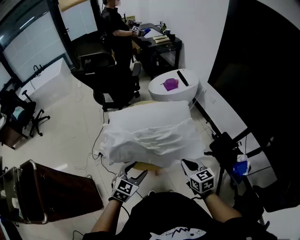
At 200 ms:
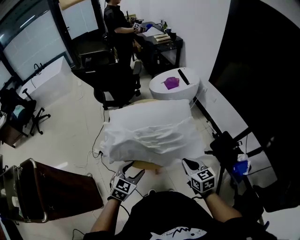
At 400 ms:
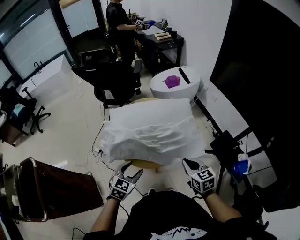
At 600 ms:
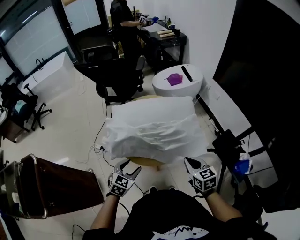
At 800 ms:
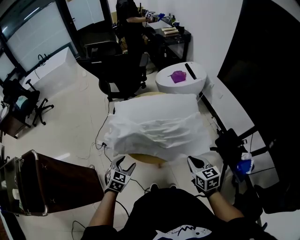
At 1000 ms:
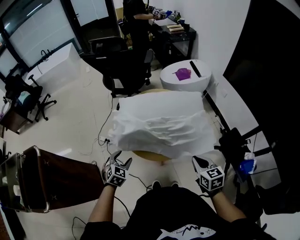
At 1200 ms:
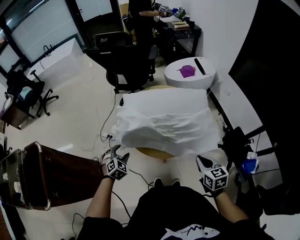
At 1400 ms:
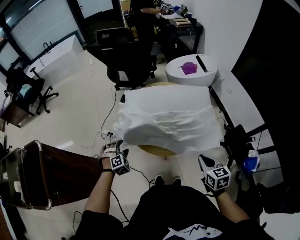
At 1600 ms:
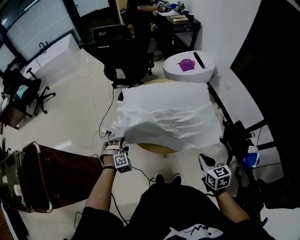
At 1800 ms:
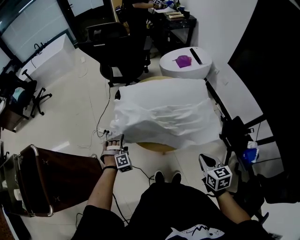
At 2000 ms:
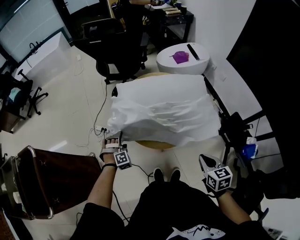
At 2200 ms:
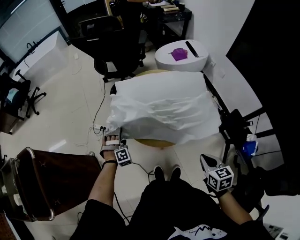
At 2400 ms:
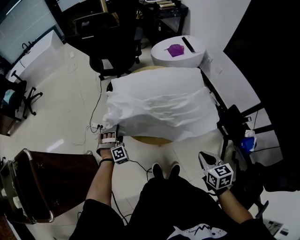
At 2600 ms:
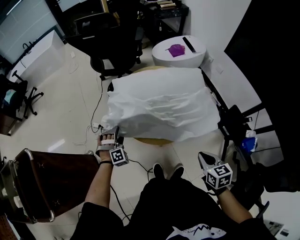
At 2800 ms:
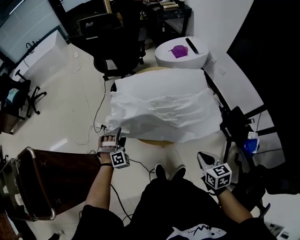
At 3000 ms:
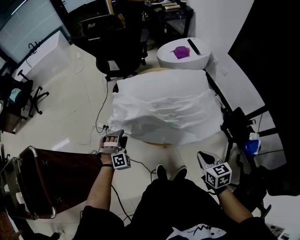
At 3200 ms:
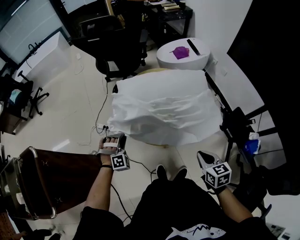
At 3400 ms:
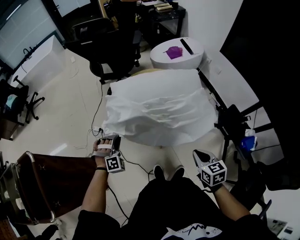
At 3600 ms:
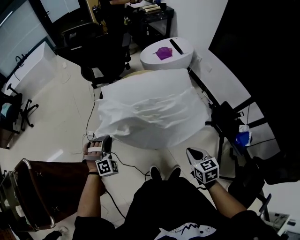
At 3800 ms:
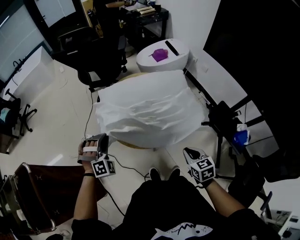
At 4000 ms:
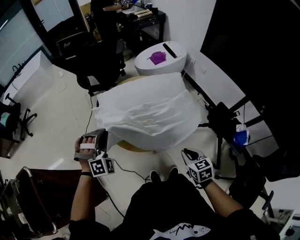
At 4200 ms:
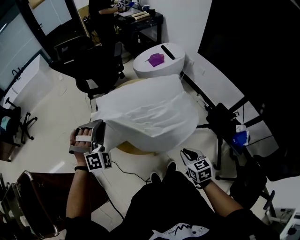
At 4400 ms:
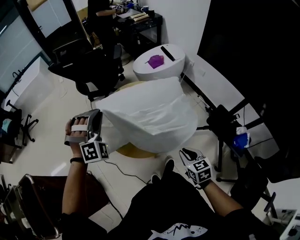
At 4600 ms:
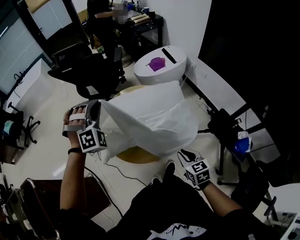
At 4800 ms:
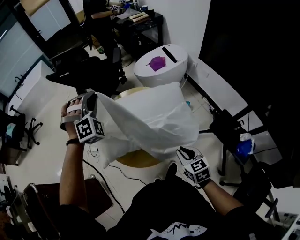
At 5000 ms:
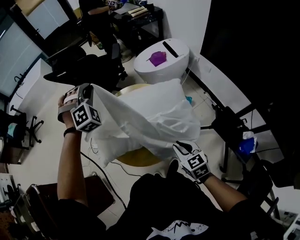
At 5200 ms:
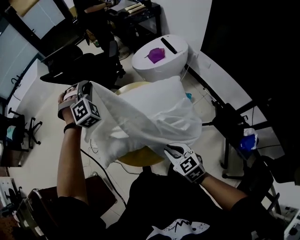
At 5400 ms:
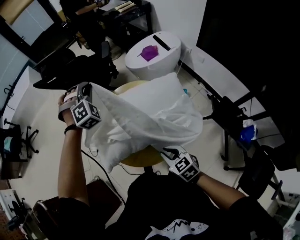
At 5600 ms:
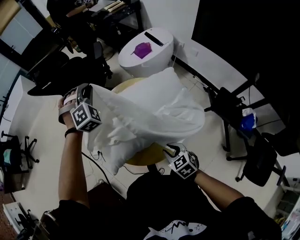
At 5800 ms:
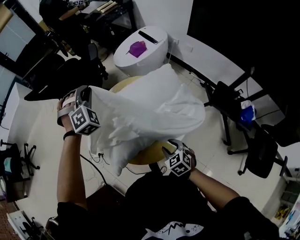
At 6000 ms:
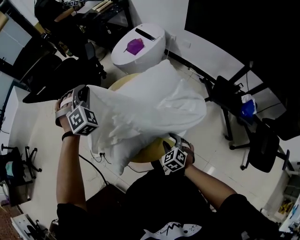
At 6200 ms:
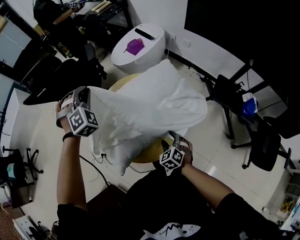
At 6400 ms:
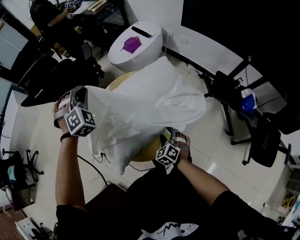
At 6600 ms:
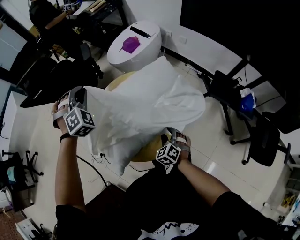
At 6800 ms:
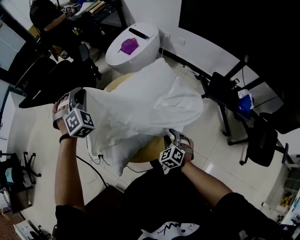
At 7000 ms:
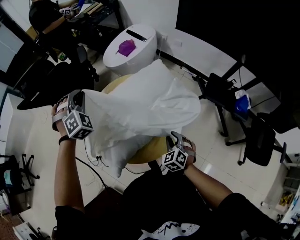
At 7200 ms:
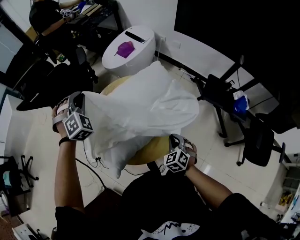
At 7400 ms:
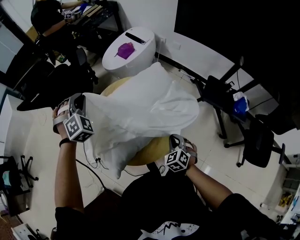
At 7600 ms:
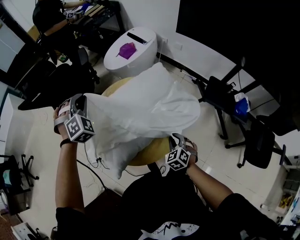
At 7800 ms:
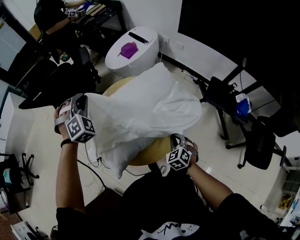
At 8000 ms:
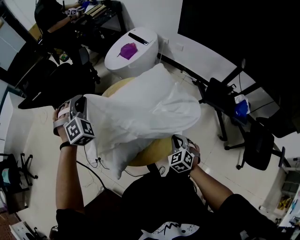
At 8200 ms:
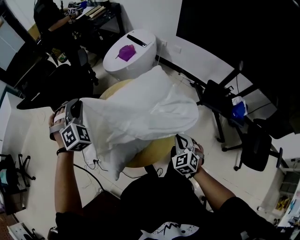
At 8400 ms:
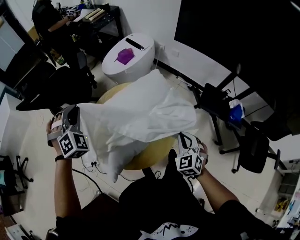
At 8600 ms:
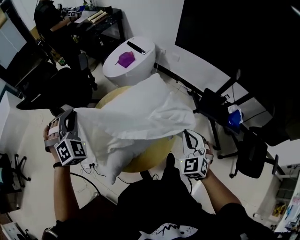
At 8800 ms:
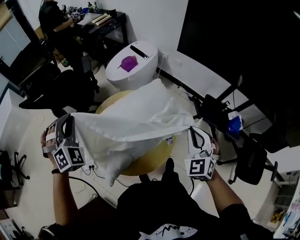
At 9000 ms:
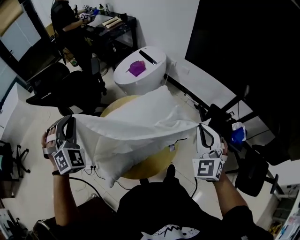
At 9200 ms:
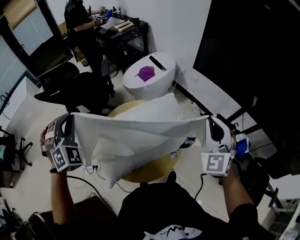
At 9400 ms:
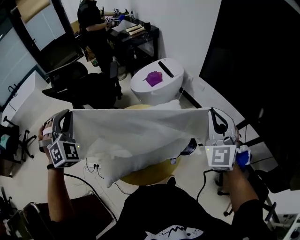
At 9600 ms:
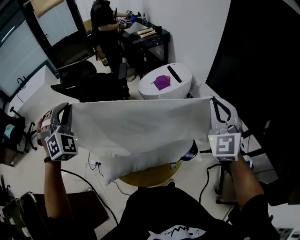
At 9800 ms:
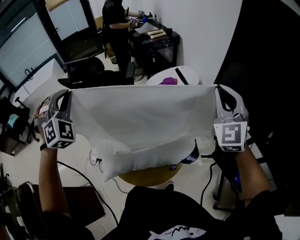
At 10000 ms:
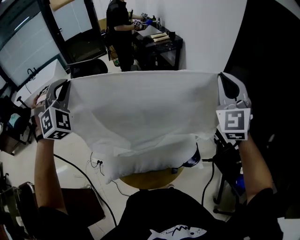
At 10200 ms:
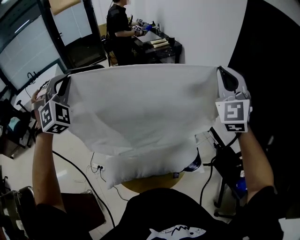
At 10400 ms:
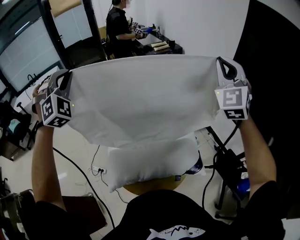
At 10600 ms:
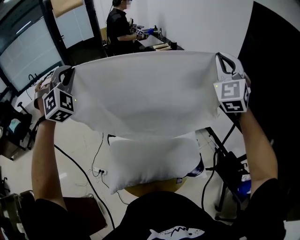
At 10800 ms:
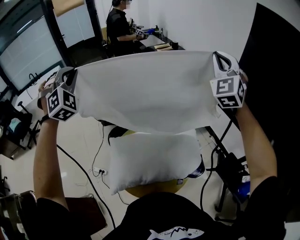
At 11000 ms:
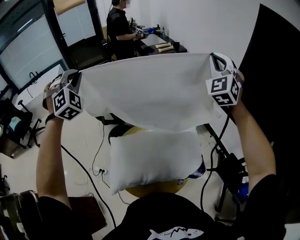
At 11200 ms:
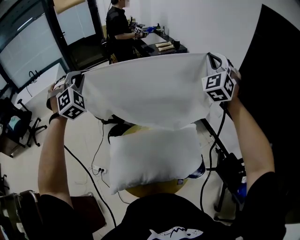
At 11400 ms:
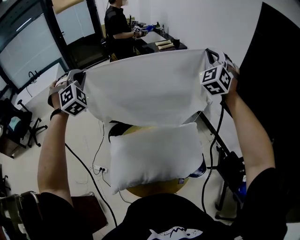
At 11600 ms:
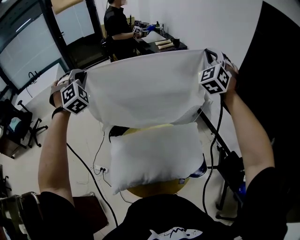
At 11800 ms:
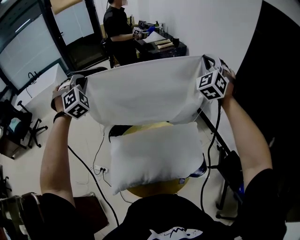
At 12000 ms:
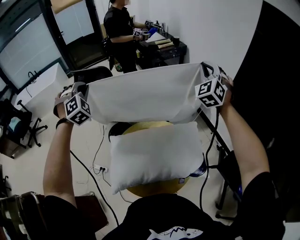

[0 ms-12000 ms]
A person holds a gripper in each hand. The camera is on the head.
3000 ms to 4400 ms: The right gripper moves some 5 cm.
4400 ms to 6000 ms: The right gripper moves about 20 cm, swivels about 30 degrees, and opens.
6000 ms to 7600 ms: The right gripper changes place by roughly 5 cm, and closes.
7600 ms to 9000 ms: The right gripper moves upward, about 30 cm, and tilts its fingers about 40 degrees upward.
9000 ms to 10400 ms: The right gripper moves upward, roughly 30 cm, and turns by approximately 30 degrees.
10400 ms to 12000 ms: The right gripper ends up approximately 15 cm from where it was.

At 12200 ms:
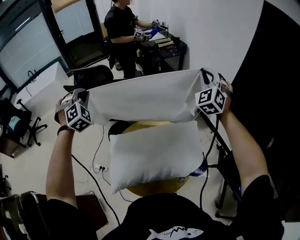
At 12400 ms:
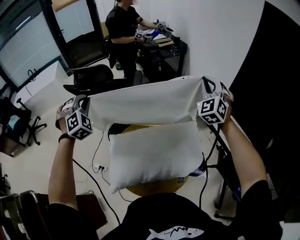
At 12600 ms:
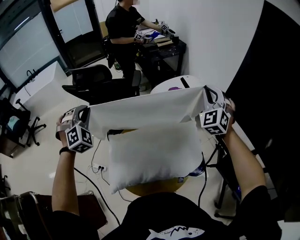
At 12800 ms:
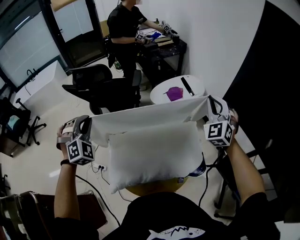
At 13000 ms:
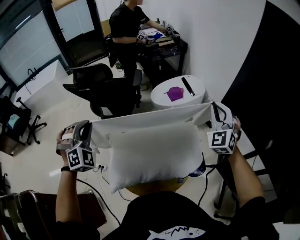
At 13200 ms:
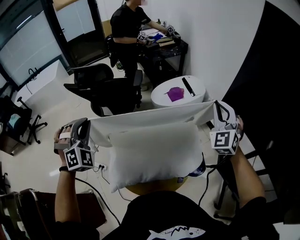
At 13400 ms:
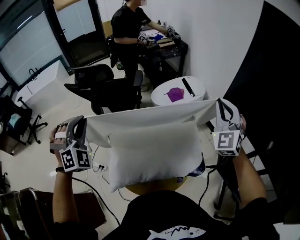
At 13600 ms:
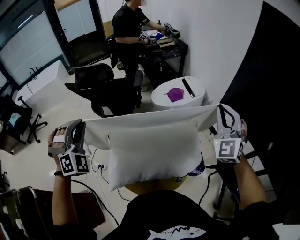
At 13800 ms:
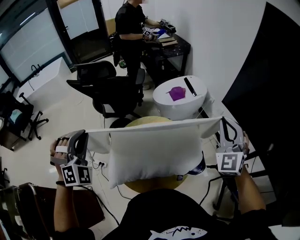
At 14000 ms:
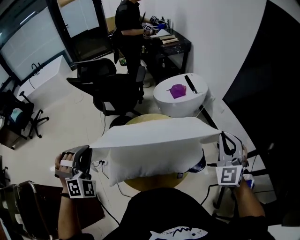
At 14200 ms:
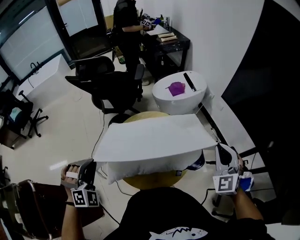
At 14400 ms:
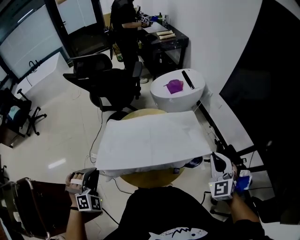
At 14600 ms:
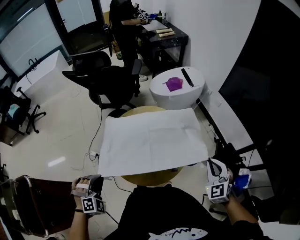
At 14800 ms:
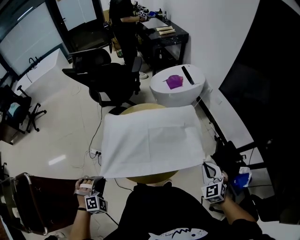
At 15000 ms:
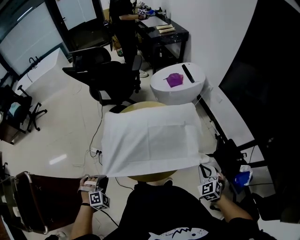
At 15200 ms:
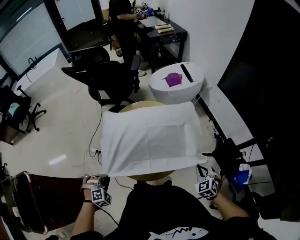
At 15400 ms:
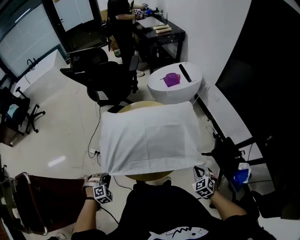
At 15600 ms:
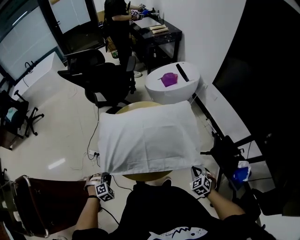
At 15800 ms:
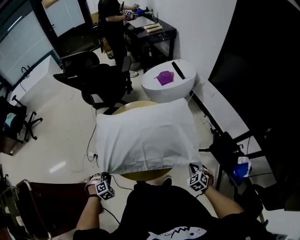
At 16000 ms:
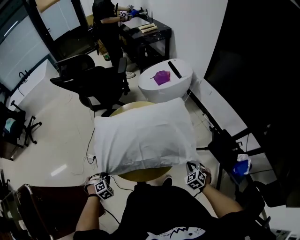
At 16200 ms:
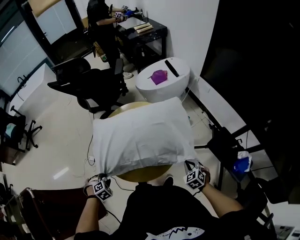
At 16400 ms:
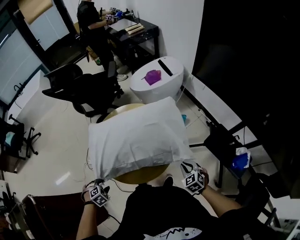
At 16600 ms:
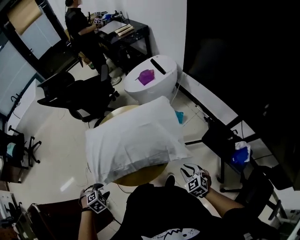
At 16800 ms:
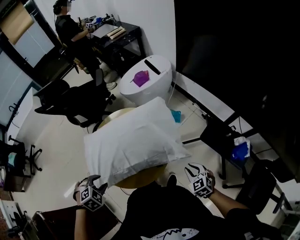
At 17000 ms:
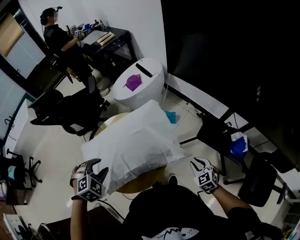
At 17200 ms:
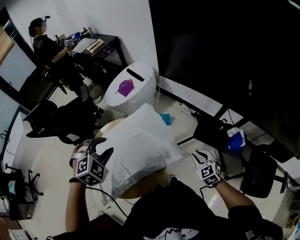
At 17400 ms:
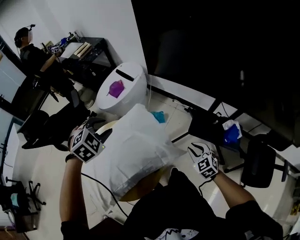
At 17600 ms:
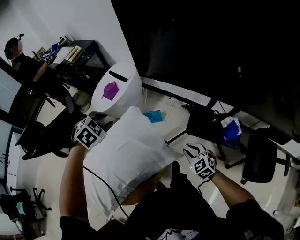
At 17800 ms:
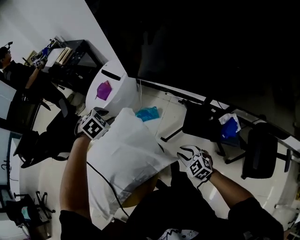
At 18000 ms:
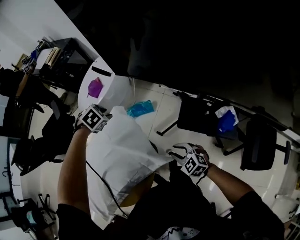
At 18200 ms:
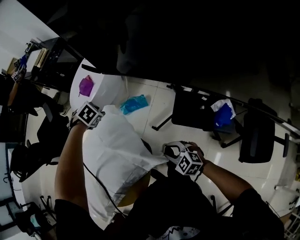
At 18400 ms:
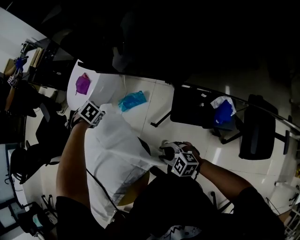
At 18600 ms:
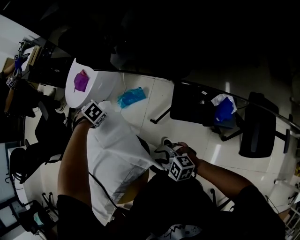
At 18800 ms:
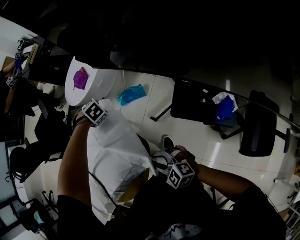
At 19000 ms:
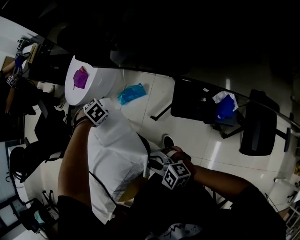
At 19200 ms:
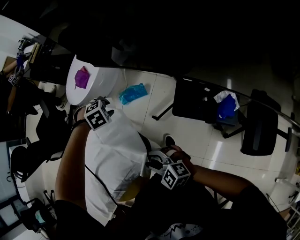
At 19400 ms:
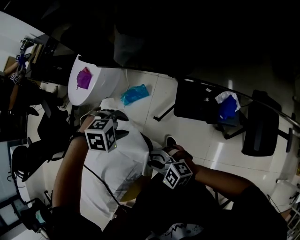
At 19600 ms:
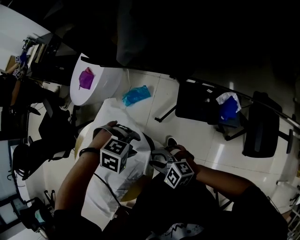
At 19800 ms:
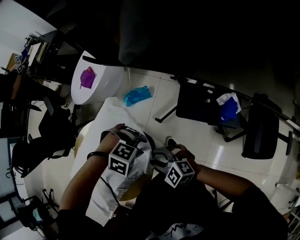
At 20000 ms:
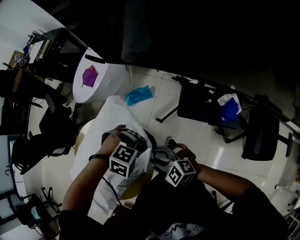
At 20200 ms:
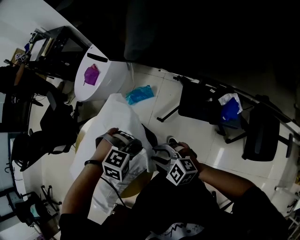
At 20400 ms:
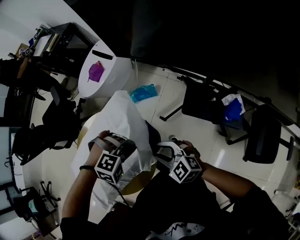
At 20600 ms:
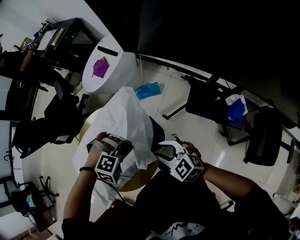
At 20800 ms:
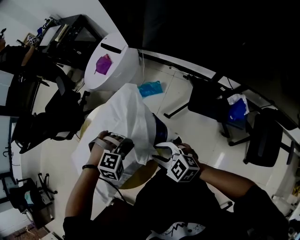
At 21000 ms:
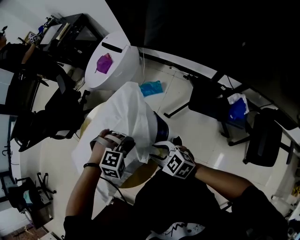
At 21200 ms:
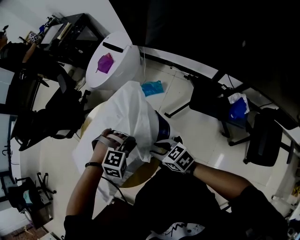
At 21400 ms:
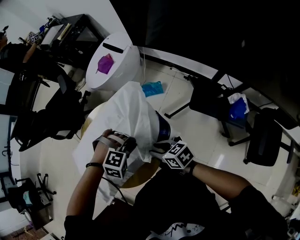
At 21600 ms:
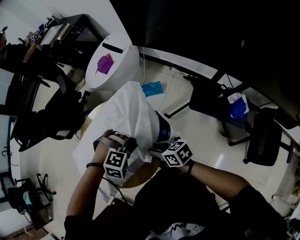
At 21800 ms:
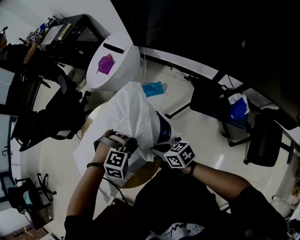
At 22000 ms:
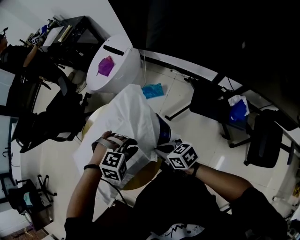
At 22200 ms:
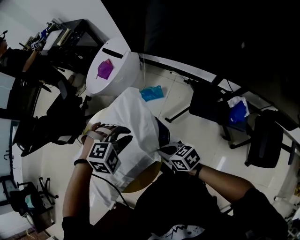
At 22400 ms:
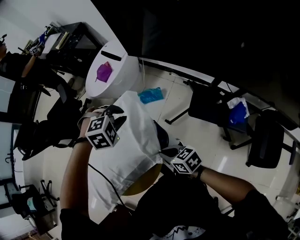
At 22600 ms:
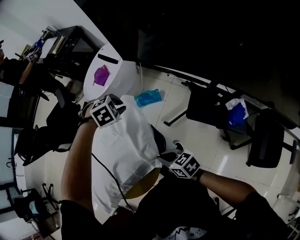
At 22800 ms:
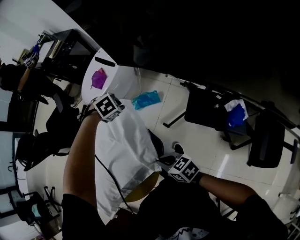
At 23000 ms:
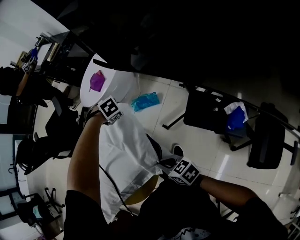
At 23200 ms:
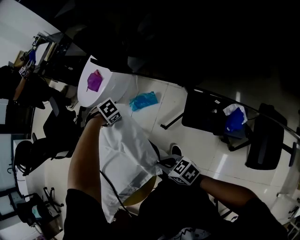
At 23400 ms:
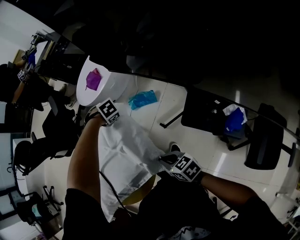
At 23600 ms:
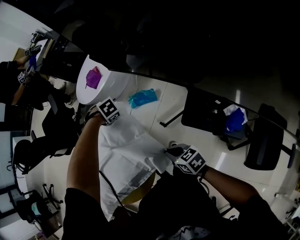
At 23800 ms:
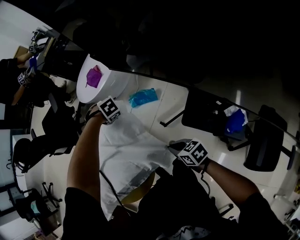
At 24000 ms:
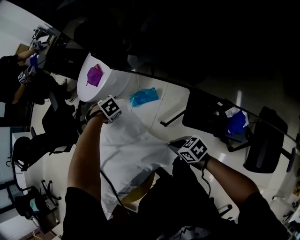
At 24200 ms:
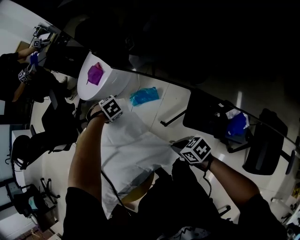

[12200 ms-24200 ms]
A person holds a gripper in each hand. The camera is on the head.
12200 ms to 13800 ms: The right gripper changes place by approximately 20 cm.
13800 ms to 15200 ms: The right gripper heads downward, covering some 35 cm, and angles its fingers downward, by roughly 40 degrees.
16600 ms to 18200 ms: The right gripper moves some 10 cm.
18200 ms to 19800 ms: The right gripper shifts by about 10 cm.
19800 ms to 21200 ms: The right gripper changes place by about 10 cm, and rotates roughly 40 degrees.
21200 ms to 22600 ms: The right gripper changes place by roughly 5 cm, and closes.
22600 ms to 24200 ms: The right gripper ends up some 15 cm from where it was.
